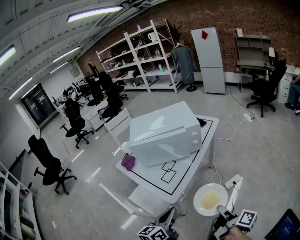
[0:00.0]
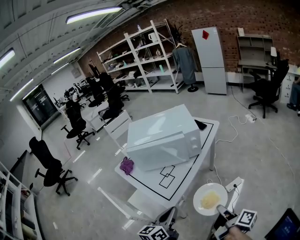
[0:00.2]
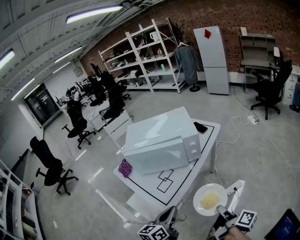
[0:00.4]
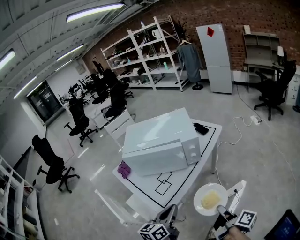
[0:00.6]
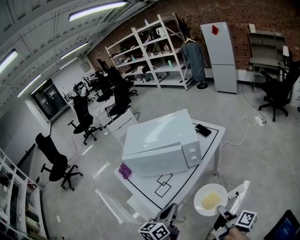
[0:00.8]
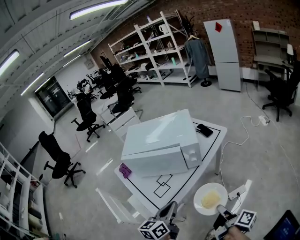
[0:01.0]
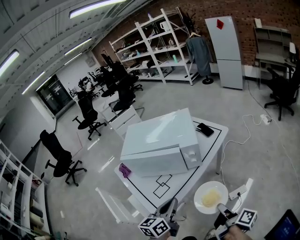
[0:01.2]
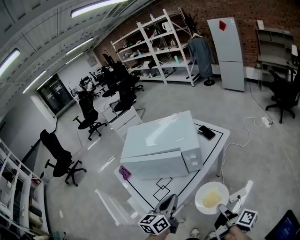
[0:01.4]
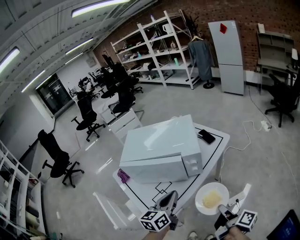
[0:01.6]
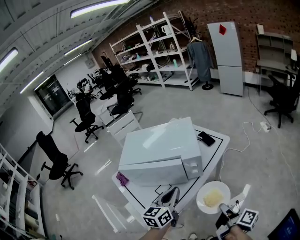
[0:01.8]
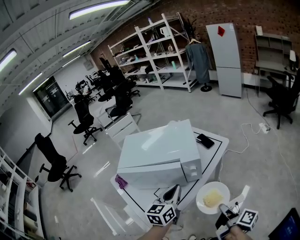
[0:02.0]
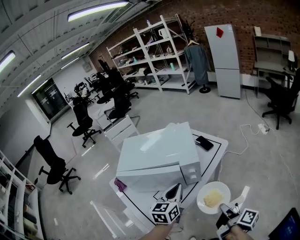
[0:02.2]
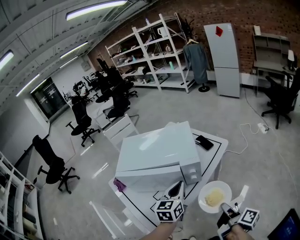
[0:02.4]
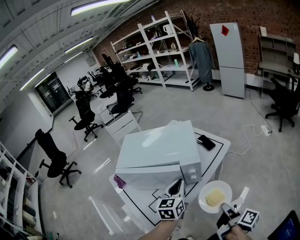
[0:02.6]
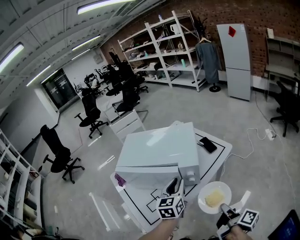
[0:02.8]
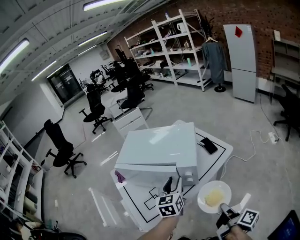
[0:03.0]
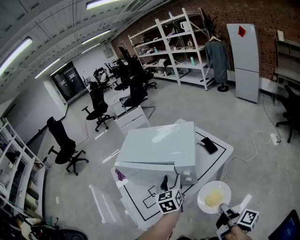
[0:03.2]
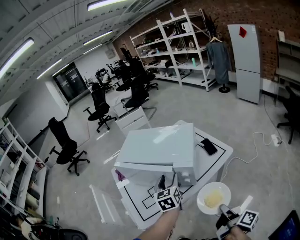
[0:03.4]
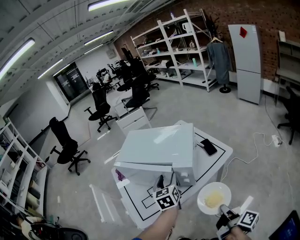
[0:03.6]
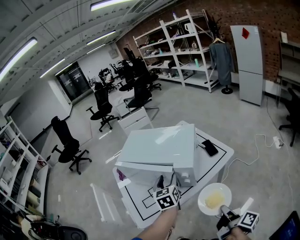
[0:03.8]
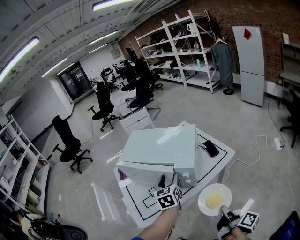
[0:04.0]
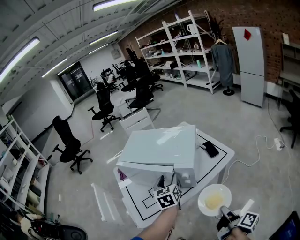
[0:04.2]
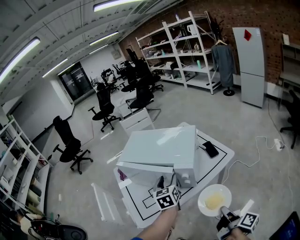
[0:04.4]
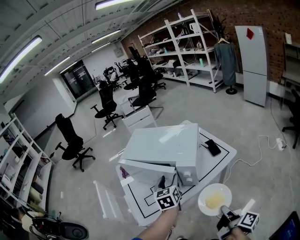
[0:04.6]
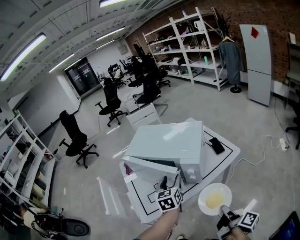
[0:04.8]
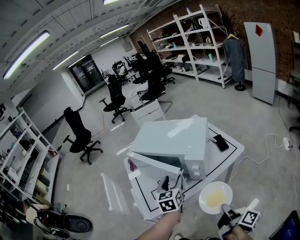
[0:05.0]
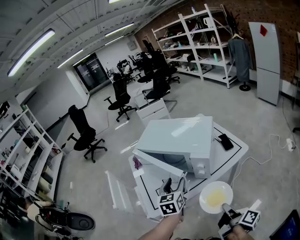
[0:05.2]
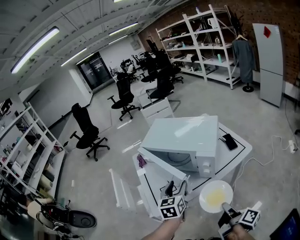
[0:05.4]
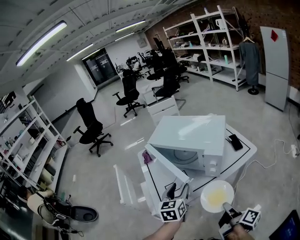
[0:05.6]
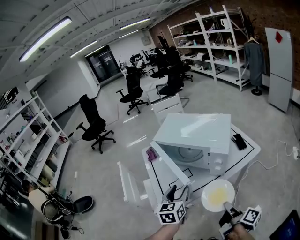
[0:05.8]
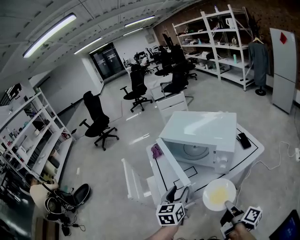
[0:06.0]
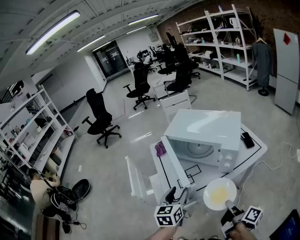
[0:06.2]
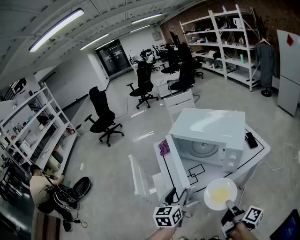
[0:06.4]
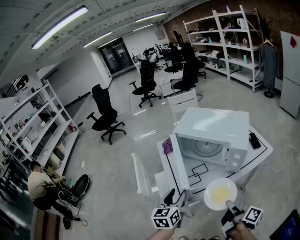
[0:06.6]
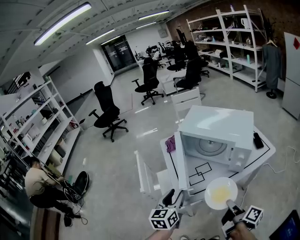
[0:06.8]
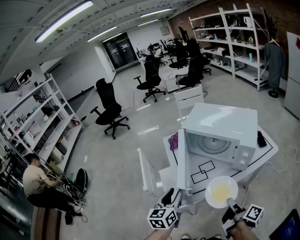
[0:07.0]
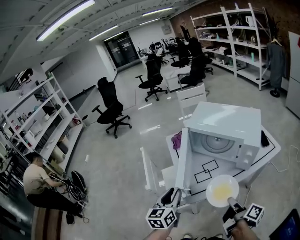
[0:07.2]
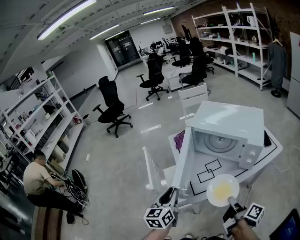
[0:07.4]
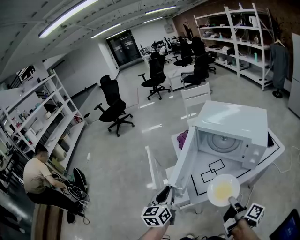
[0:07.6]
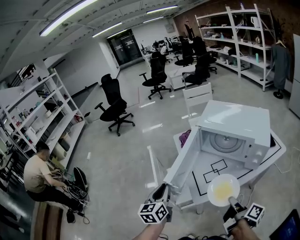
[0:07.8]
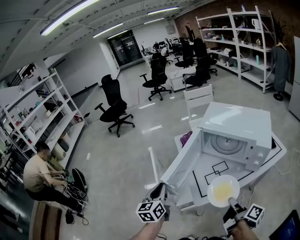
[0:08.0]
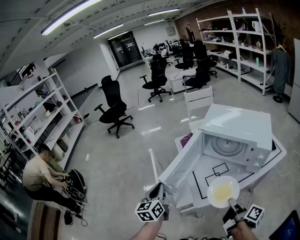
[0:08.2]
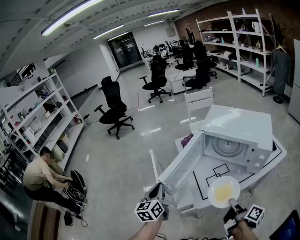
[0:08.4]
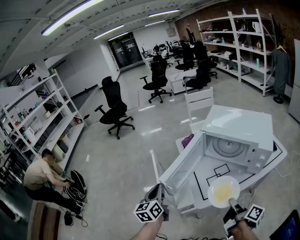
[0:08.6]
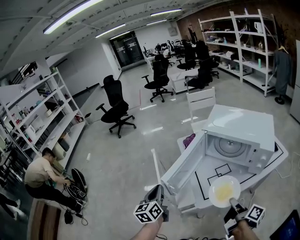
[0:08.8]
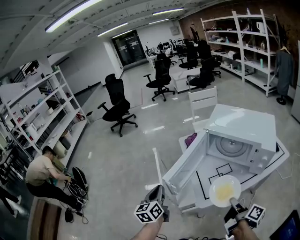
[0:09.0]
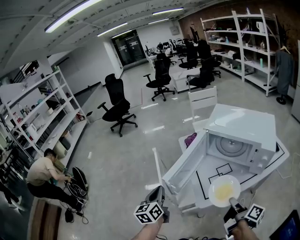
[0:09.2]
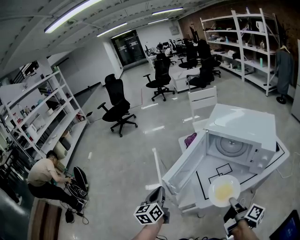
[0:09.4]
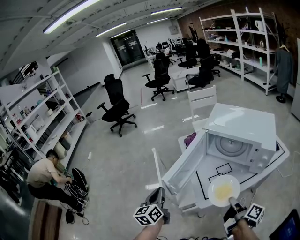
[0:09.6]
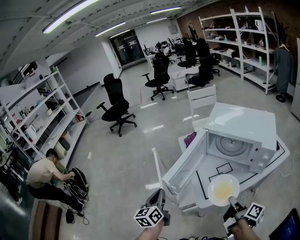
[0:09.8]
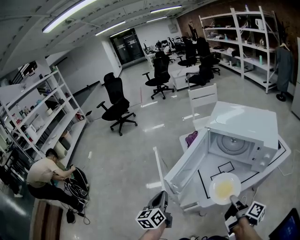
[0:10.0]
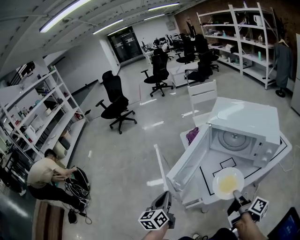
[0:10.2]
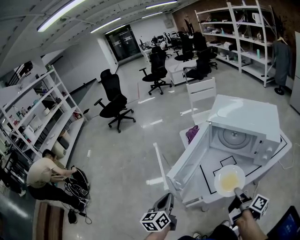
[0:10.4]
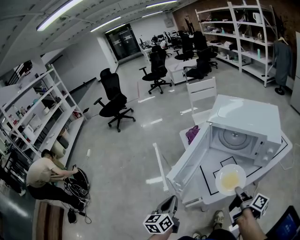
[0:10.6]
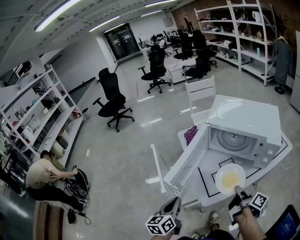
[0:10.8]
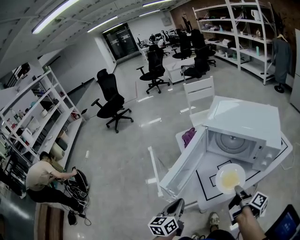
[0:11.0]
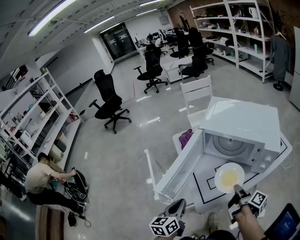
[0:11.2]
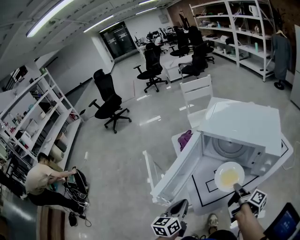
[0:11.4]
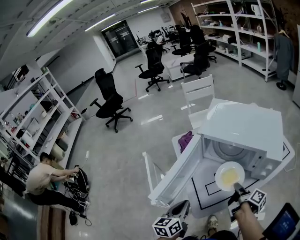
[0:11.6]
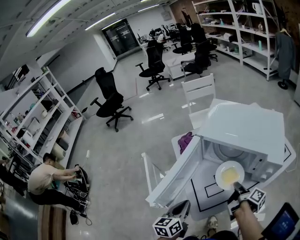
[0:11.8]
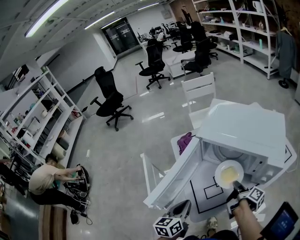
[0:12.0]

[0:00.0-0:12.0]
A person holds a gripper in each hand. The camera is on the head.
0:00.0 to 0:01.6: The left gripper heads forward, covering roughly 25 cm. The right gripper shifts about 25 cm forward and to the right.
0:01.6 to 0:03.0: The right gripper heads forward and to the right, covering roughly 10 cm. The left gripper travels forward by approximately 10 cm, turns by roughly 30 degrees, and opens up.
0:03.0 to 0:04.4: The left gripper opens.
0:04.4 to 0:06.0: The right gripper goes approximately 15 cm to the left, while the left gripper shifts about 20 cm to the left and backward.
0:06.0 to 0:07.6: The right gripper travels to the left by approximately 15 cm; the left gripper shifts some 20 cm to the left, and closes its fingers.
0:07.6 to 0:09.0: The left gripper travels to the left by roughly 10 cm.
0:09.0 to 0:10.4: The left gripper moves approximately 5 cm.
0:10.4 to 0:12.0: The left gripper is displaced to the right and forward by roughly 20 cm. The right gripper shifts roughly 15 cm forward.

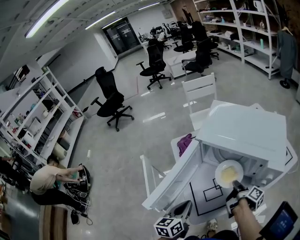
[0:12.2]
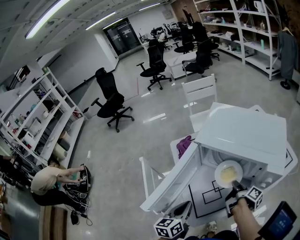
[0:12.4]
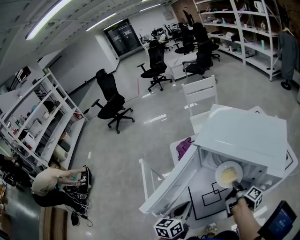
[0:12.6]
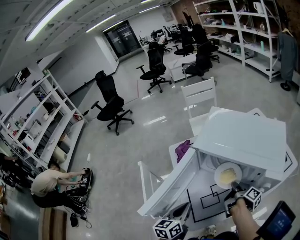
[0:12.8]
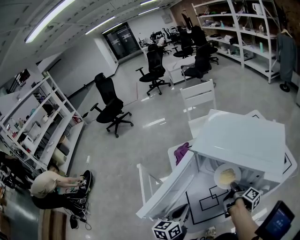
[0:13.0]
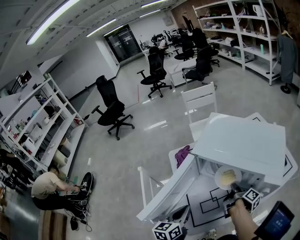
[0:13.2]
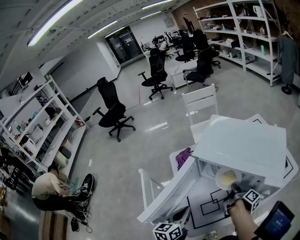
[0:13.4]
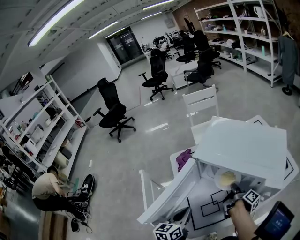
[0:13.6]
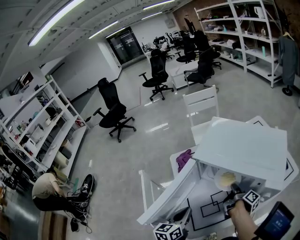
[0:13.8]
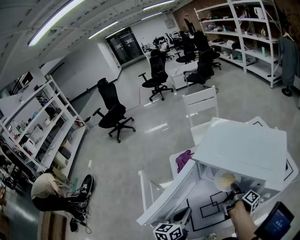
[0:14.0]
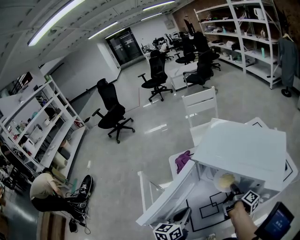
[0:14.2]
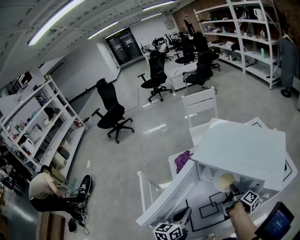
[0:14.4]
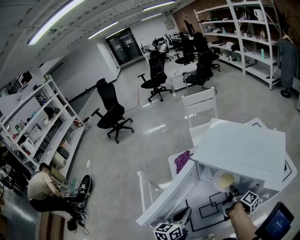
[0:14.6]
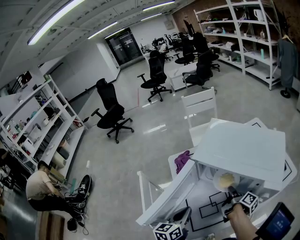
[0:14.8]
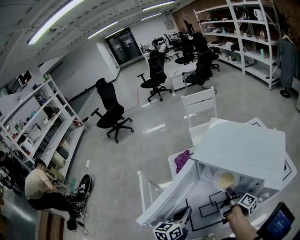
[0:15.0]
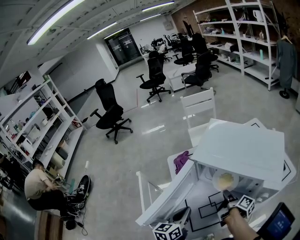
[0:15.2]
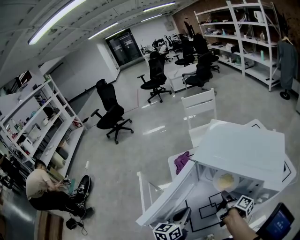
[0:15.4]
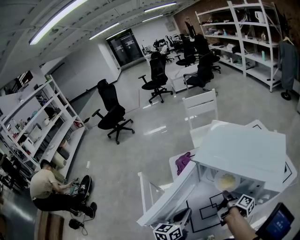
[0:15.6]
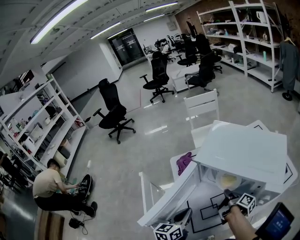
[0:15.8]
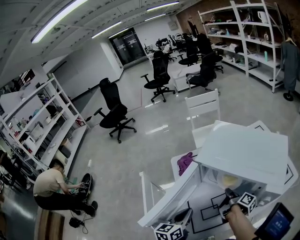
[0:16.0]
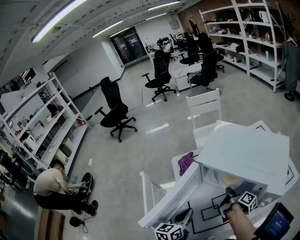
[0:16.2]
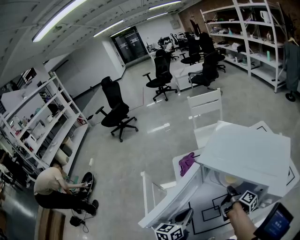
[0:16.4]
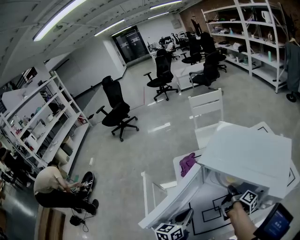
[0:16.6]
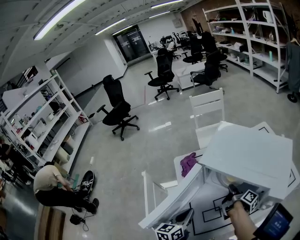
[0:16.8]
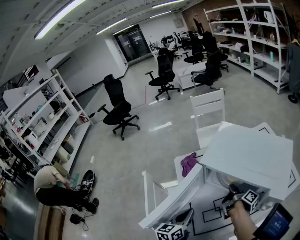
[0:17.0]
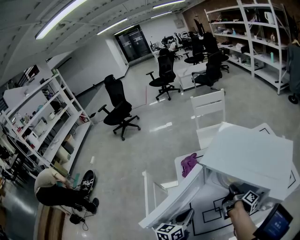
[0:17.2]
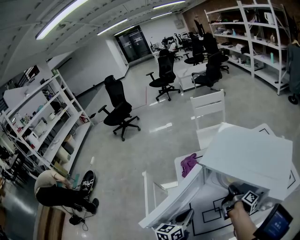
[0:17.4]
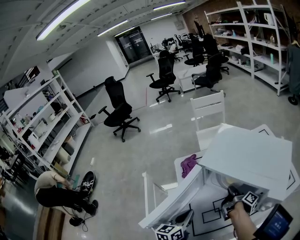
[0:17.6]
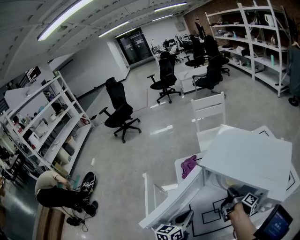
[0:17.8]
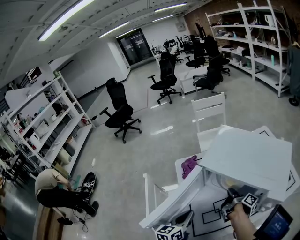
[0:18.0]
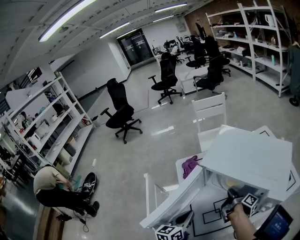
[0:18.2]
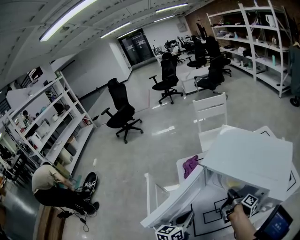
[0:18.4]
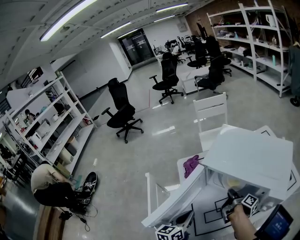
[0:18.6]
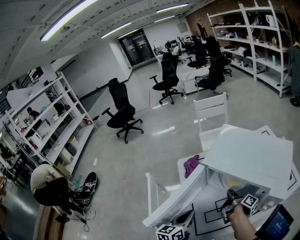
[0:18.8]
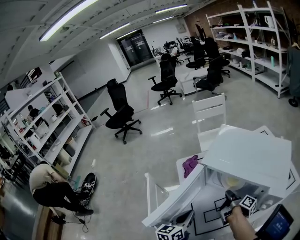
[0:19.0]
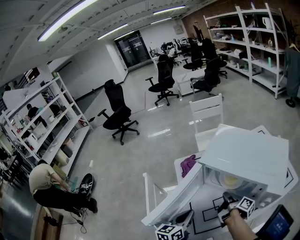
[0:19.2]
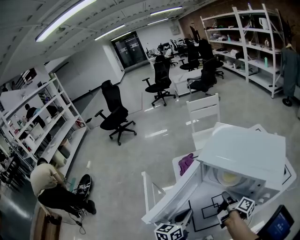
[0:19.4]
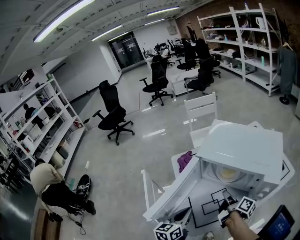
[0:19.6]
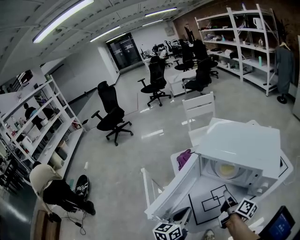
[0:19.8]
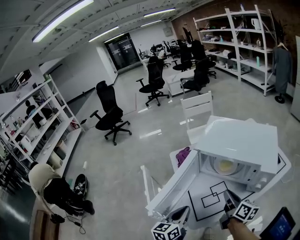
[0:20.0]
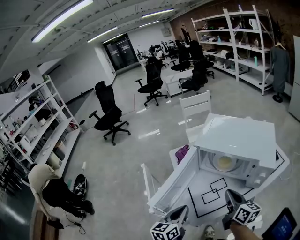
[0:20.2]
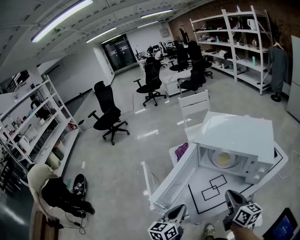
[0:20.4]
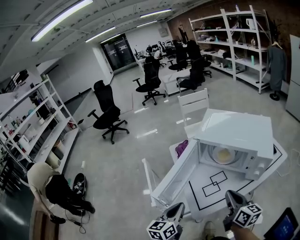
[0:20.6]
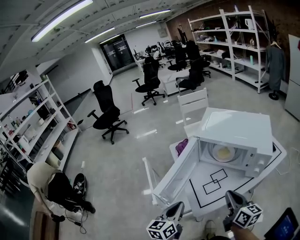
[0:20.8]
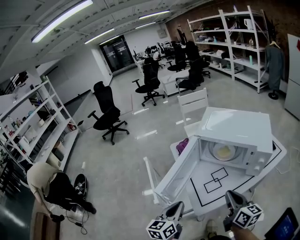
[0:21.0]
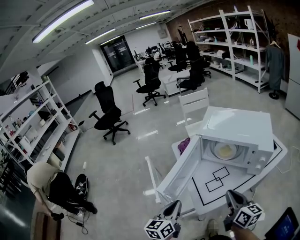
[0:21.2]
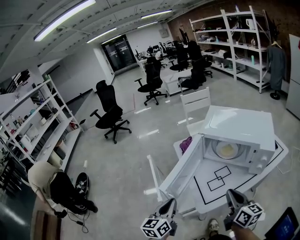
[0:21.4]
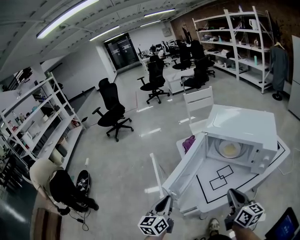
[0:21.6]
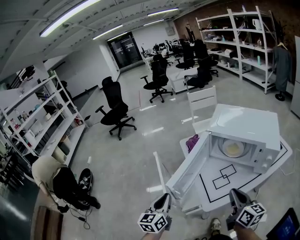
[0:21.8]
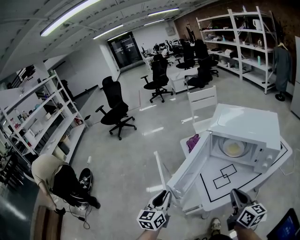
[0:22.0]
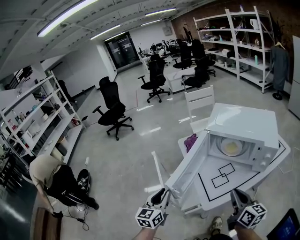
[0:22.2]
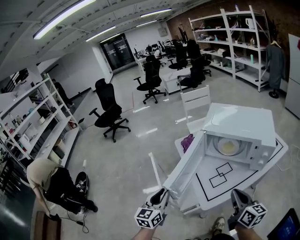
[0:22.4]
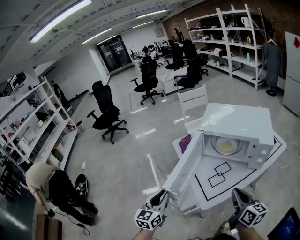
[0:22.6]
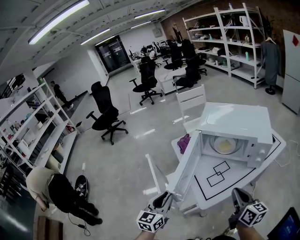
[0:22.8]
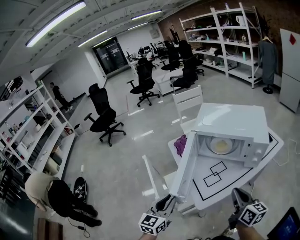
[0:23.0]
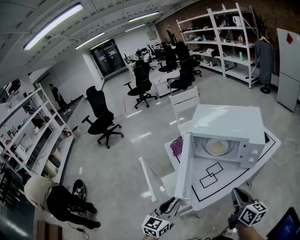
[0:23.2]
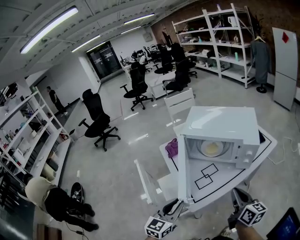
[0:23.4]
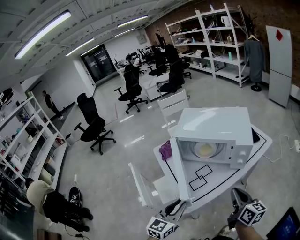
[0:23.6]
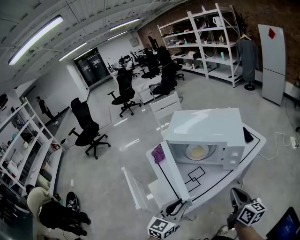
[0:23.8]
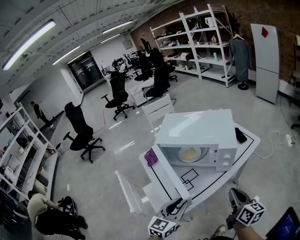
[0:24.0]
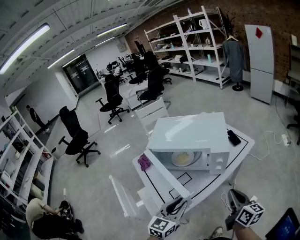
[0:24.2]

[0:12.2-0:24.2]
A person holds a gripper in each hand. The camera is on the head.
0:12.2 to 0:13.8: The two grippers go about 5 cm forward.
0:13.8 to 0:15.2: The grippers move only a little.
0:15.2 to 0:16.6: The right gripper moves forward, approximately 5 cm.
0:16.6 to 0:18.2: There are only small adjustments of the grippers.
0:18.2 to 0:19.8: The right gripper shifts some 15 cm backward and upward, and changes its angle by about 30 degrees, while the left gripper heads backward, covering some 5 cm.
0:19.8 to 0:21.2: The right gripper heads backward and upward, covering some 20 cm, and changes its angle by about 30 degrees, while the left gripper shifts approximately 10 cm backward and to the left.
0:21.2 to 0:22.6: The left gripper moves to the left, about 10 cm.
0:22.6 to 0:24.2: The right gripper travels to the right by roughly 20 cm; the left gripper is displaced to the right by approximately 30 cm, and rotates roughly 30 degrees.
